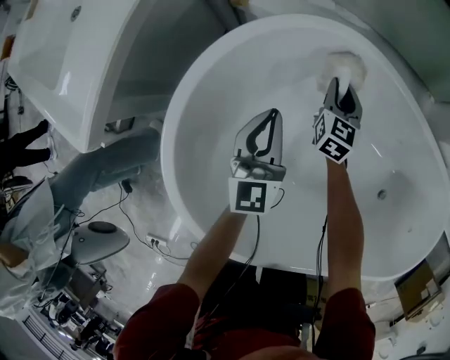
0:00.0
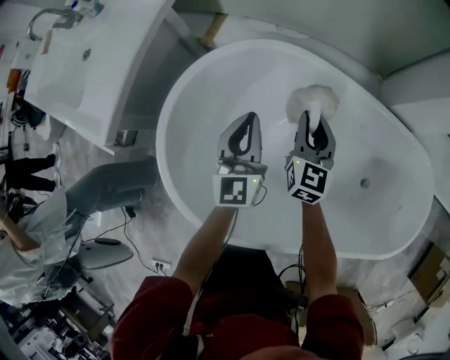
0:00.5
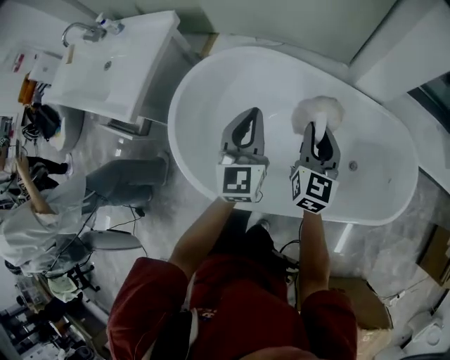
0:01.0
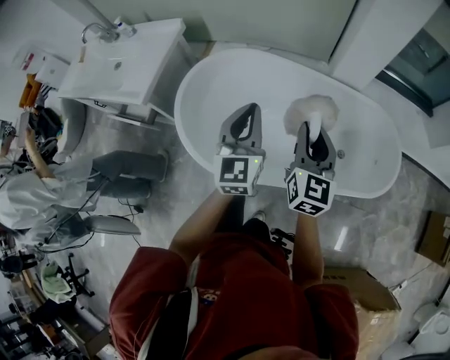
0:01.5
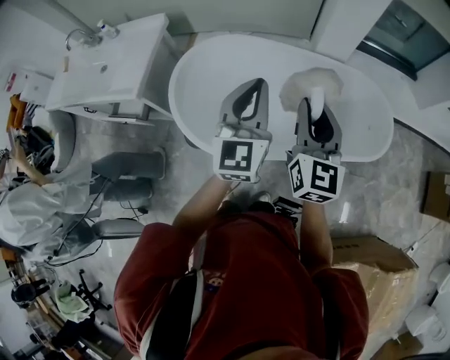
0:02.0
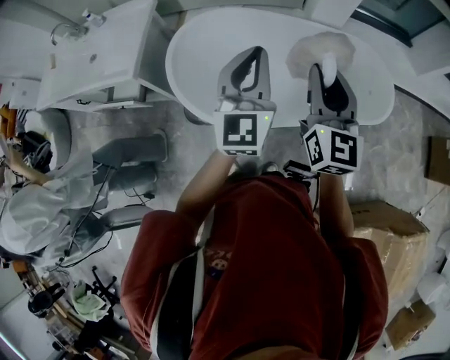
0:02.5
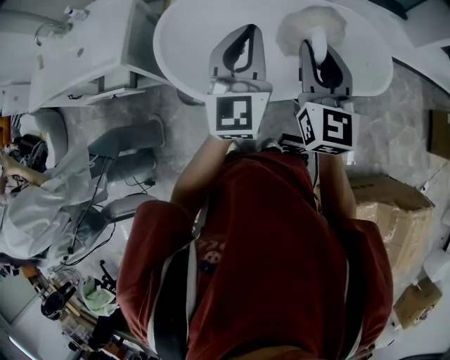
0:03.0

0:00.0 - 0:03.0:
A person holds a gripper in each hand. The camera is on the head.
0:00.0 - 0:01.5: The grippers both shift upward, backward and to the right by about 60 cm. The left gripper turns by roughly 20 degrees, while the right gripper turns by about 20 degrees.
0:01.5 - 0:03.0: The grippers both shift backward and upward by some 15 cm.

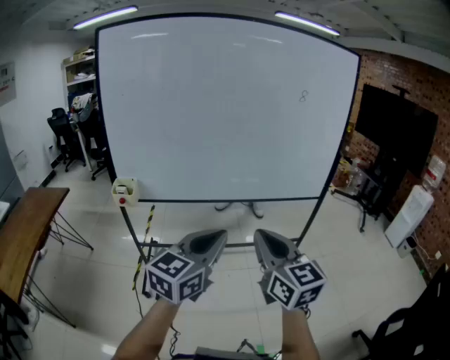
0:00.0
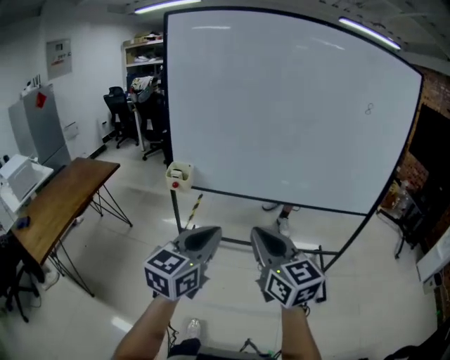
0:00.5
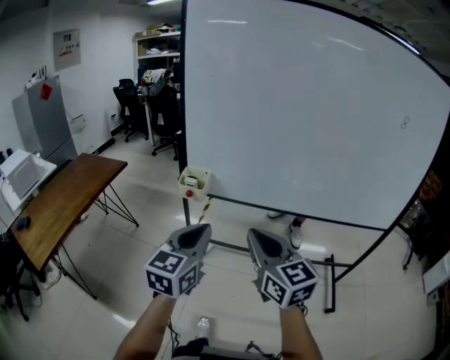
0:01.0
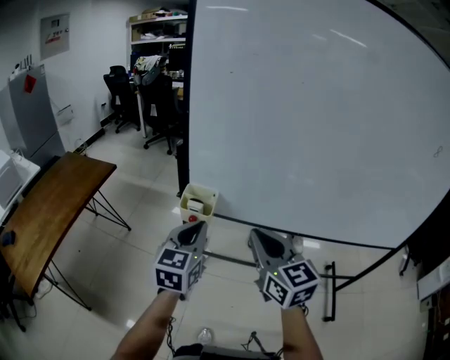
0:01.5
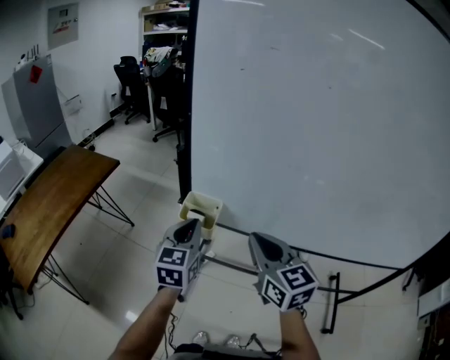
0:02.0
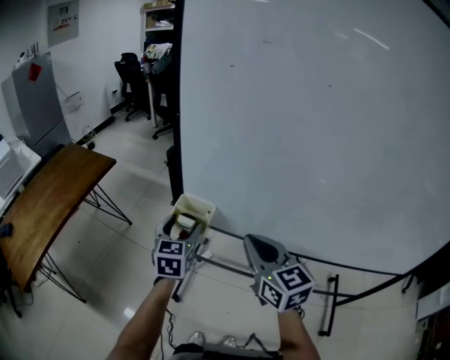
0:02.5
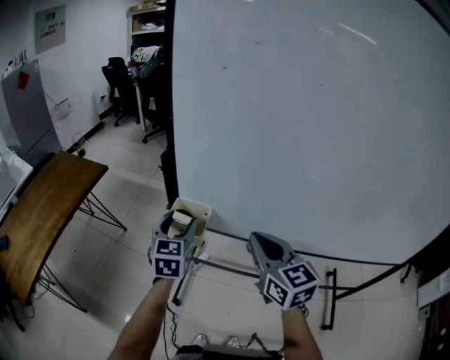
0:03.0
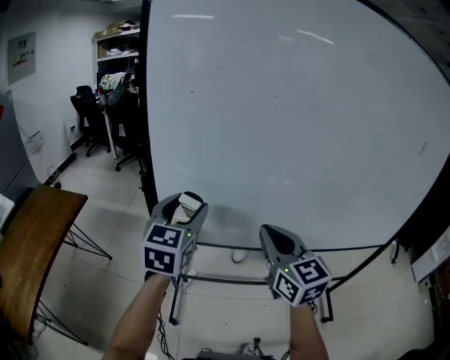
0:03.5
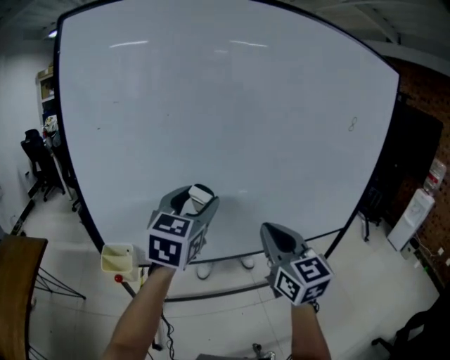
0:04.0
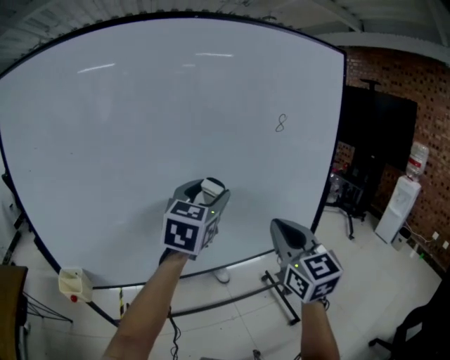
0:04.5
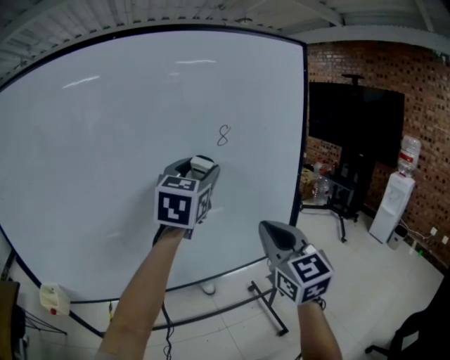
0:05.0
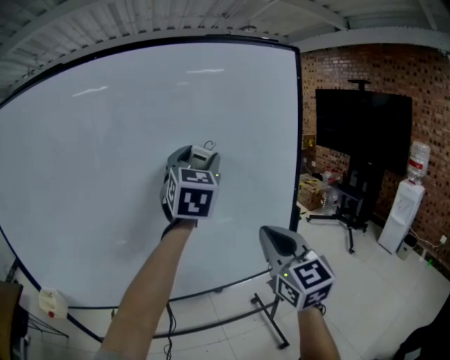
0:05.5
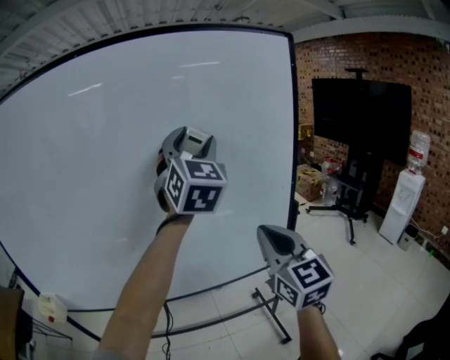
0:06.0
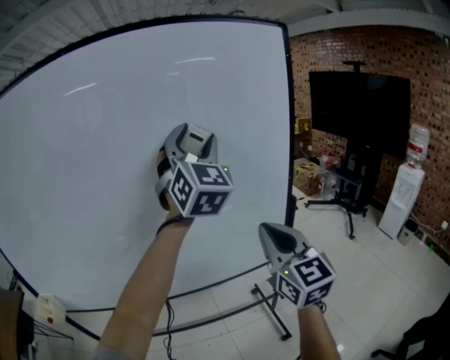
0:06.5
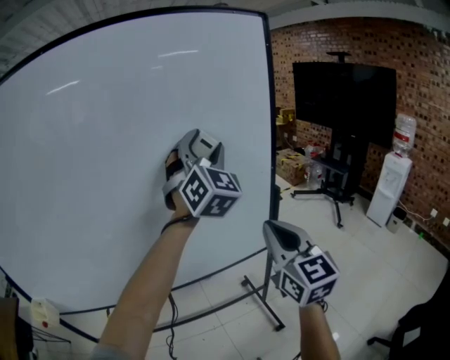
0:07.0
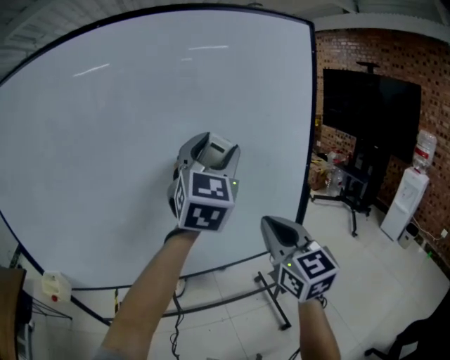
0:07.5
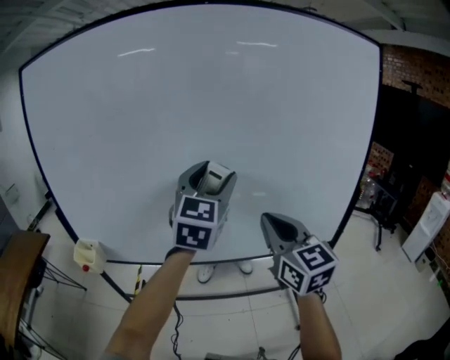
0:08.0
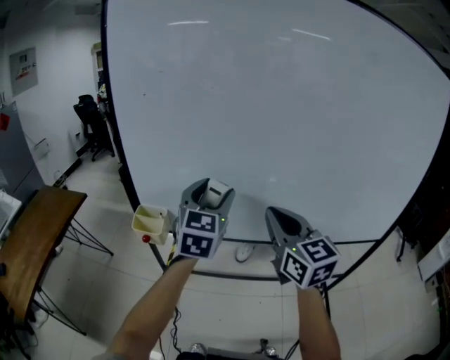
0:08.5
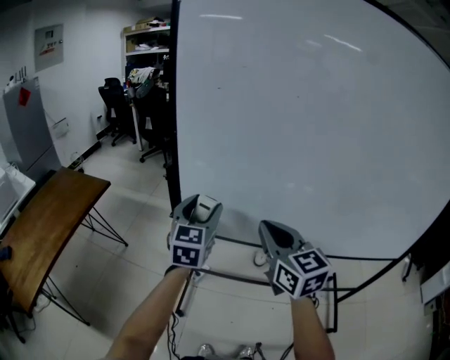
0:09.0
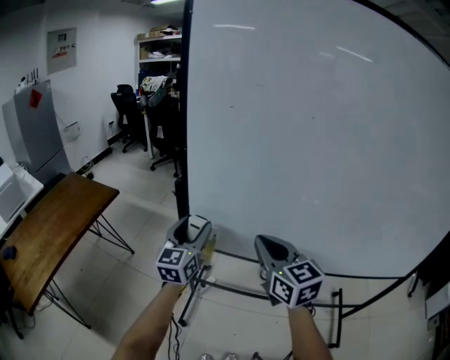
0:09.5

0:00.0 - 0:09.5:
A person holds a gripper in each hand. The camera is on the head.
0:00.0 - 0:02.0: Both grippers are carried some 40 cm. The right gripper swivels approximately 20 degrees, while the left gripper swivels approximately 40 degrees.
0:02.0 - 0:04.0: The right gripper shifts by roughly 25 cm, and swivels about 30 degrees; the left gripper changes place by about 35 cm, rotates about 40 degrees, and opens up.
0:04.0 - 0:05.5: The right gripper travels to the right by roughly 35 cm, while the left gripper moves to the right and upward, roughly 40 cm, and rotates roughly 20 degrees.
0:05.5 - 0:07.5: The right gripper moves some 5 cm to the right and comes back; the left gripper travels backward by about 5 cm, and travels to the right and back again, some 10 cm each way.
0:07.5 - 0:09.5: The two grippers travel together, approximately 70 cm. The right gripper rotates approximately 40 degrees; the left gripper swivels some 40 degrees.

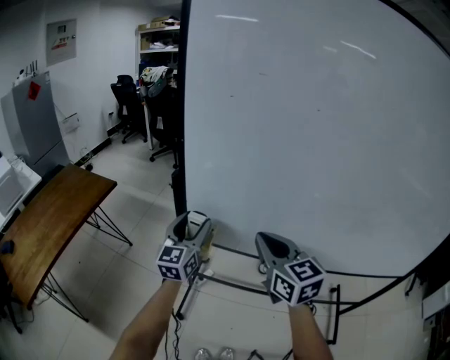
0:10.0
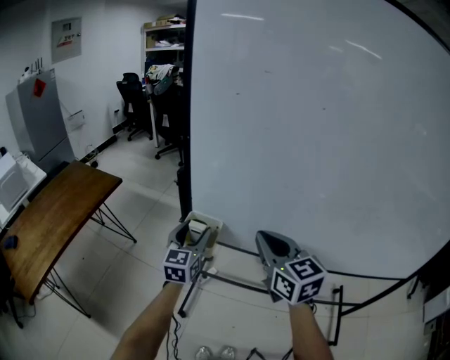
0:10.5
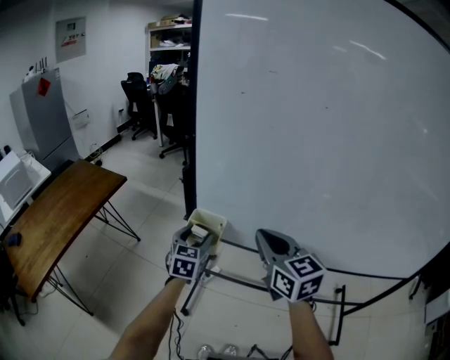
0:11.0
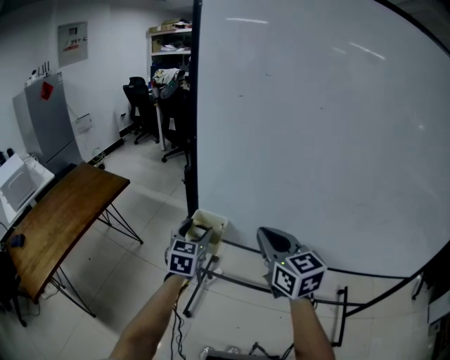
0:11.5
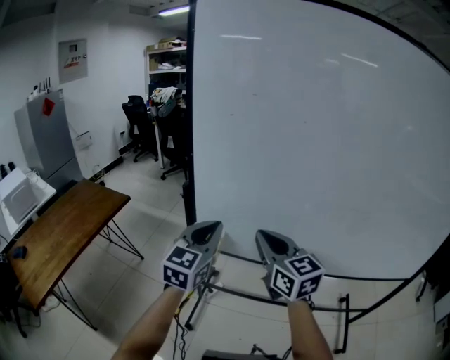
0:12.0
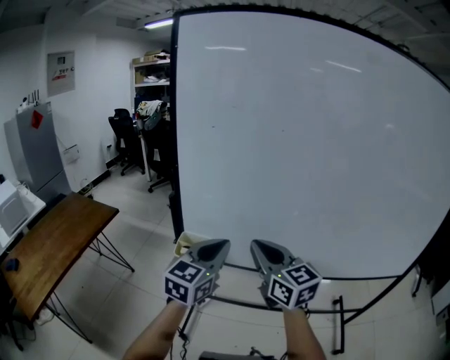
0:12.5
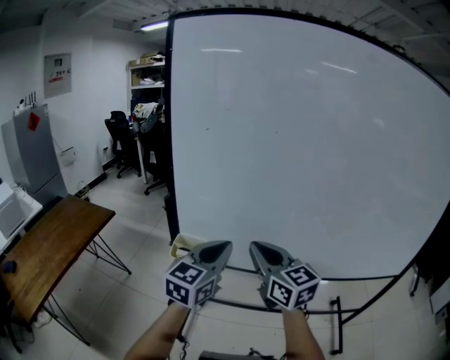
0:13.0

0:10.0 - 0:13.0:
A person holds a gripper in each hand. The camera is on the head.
0:10.0 - 0:11.5: The left gripper moves downward, roughly 5 cm, and changes its angle by approximately 20 degrees.
0:11.5 - 0:13.0: The right gripper shifts by about 5 cm. Meanwhile the left gripper shifts approximately 25 cm upward, to the right and backward, rotates about 30 degrees, and closes its fingers.

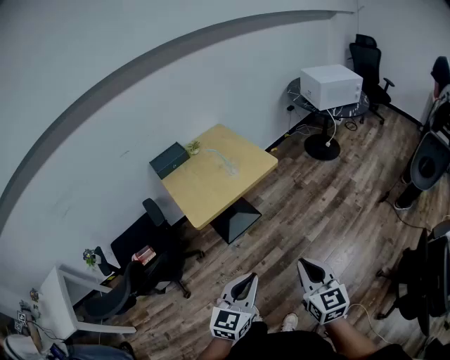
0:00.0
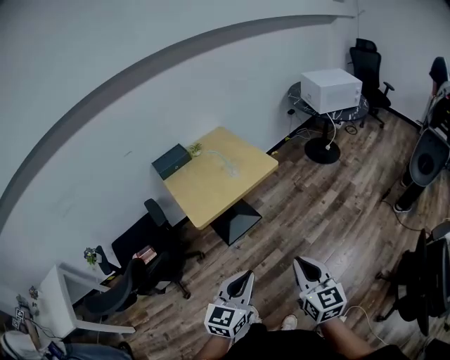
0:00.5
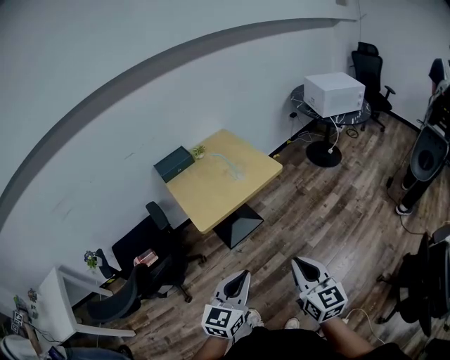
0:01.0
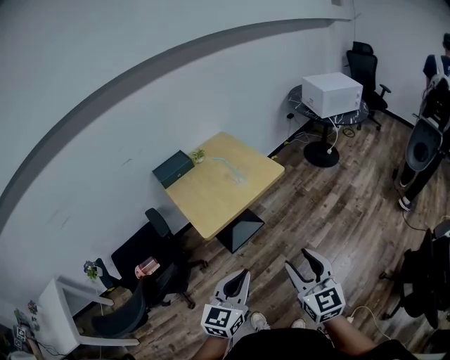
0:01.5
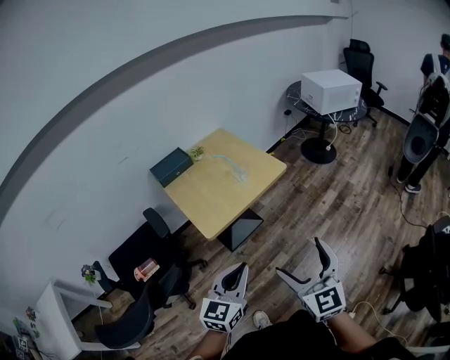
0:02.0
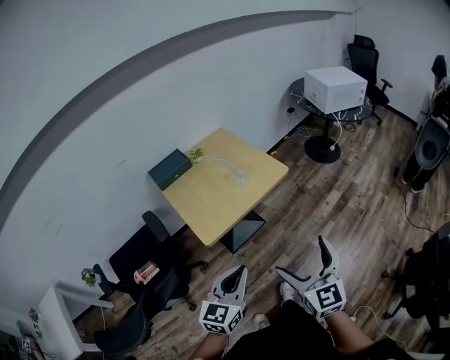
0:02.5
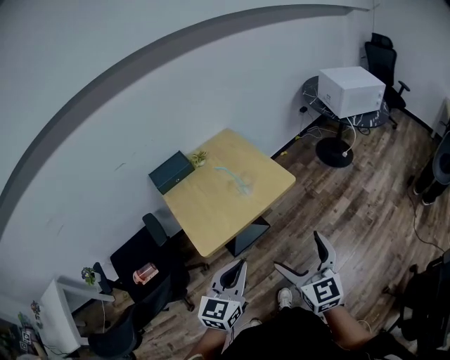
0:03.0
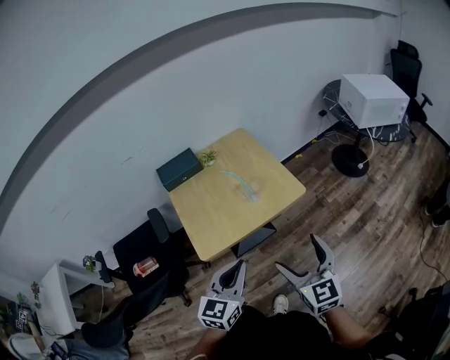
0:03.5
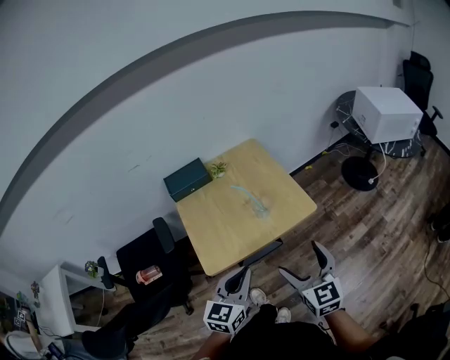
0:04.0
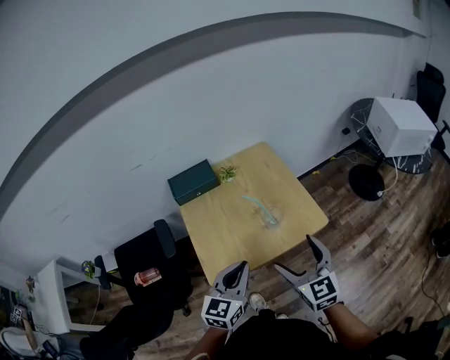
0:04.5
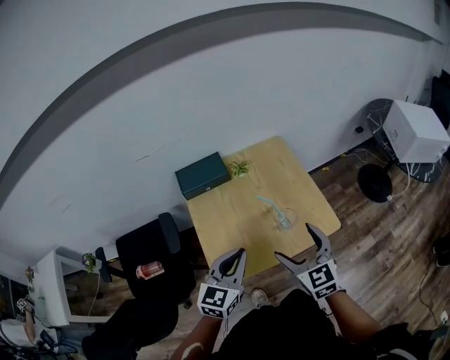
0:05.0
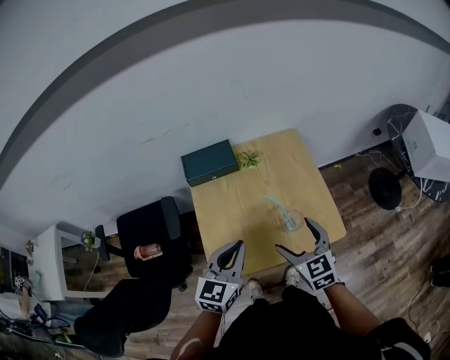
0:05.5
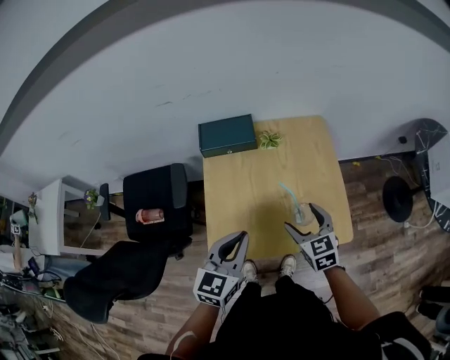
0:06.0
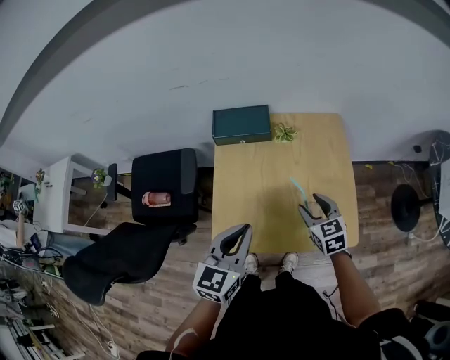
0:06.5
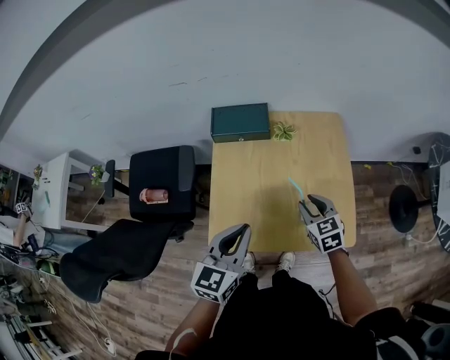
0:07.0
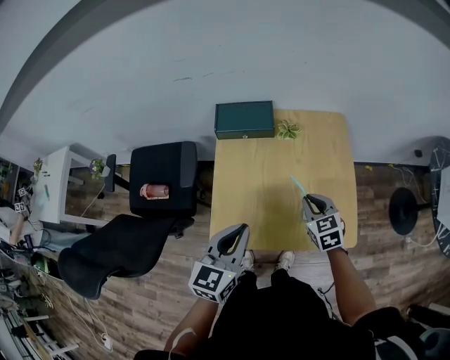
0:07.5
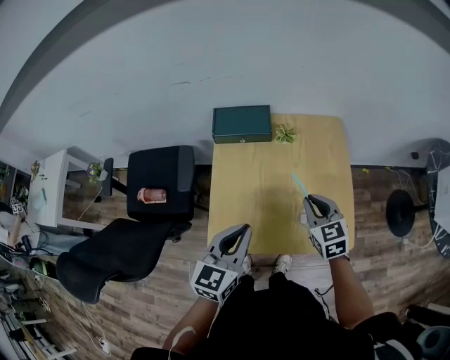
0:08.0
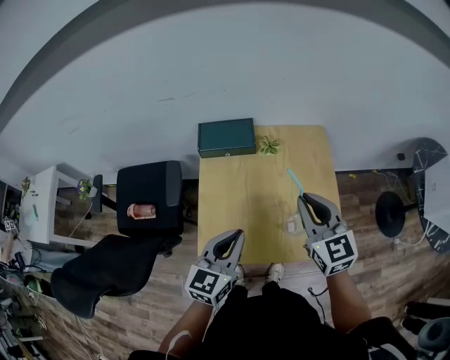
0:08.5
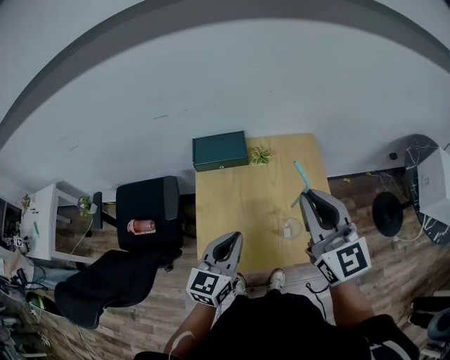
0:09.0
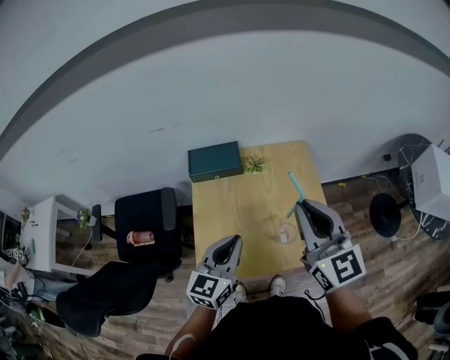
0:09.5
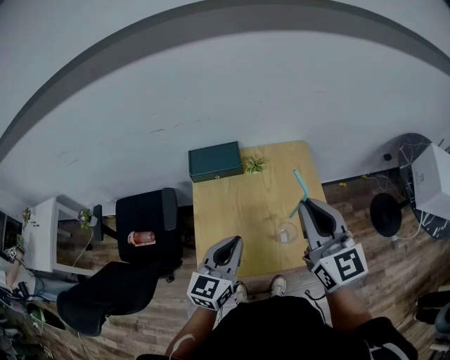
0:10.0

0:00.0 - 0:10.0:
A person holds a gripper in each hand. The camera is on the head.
0:00.0 - 0:02.0: The left gripper heads to the left and forward, covering some 15 cm; the right gripper moves to the left and upward, about 15 cm, and opens its fingers.
0:02.0 - 0:04.0: Both grippers travel together forward, some 25 cm.
0:04.0 - 0:06.0: The right gripper shifts roughly 30 cm forward and downward, and swivels some 30 degrees. Meanwhile the left gripper moves forward, about 20 cm.
0:06.0 - 0:08.0: The right gripper travels forward by about 5 cm, and closes.
0:08.0 - 0:10.0: The left gripper changes place by some 5 cm. The right gripper is displaced upward by some 25 cm, and angles its fingers upward, by about 30 degrees.
